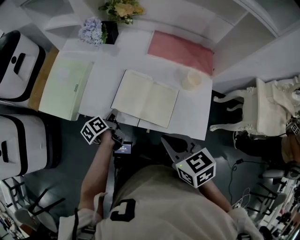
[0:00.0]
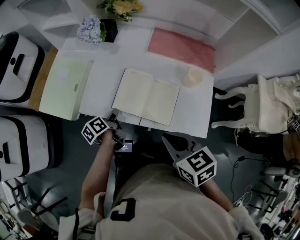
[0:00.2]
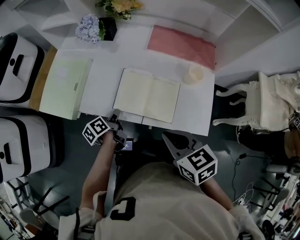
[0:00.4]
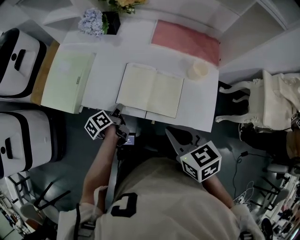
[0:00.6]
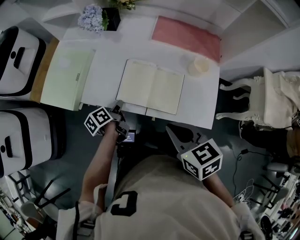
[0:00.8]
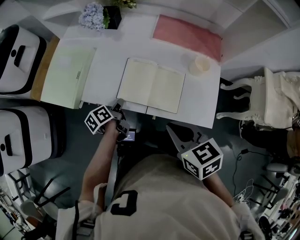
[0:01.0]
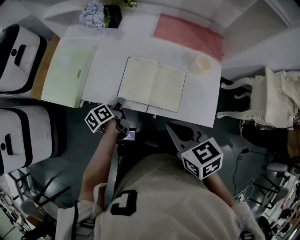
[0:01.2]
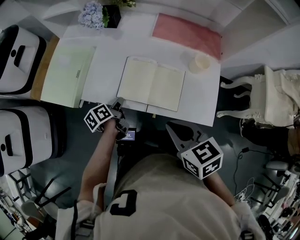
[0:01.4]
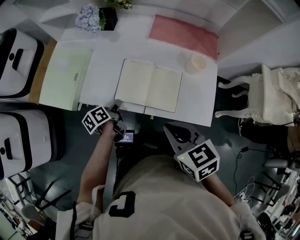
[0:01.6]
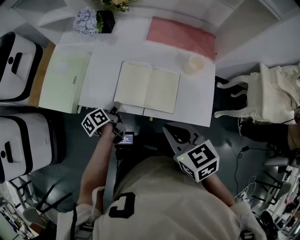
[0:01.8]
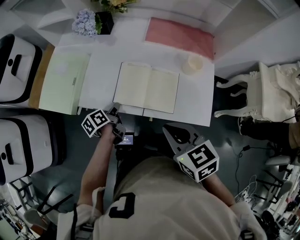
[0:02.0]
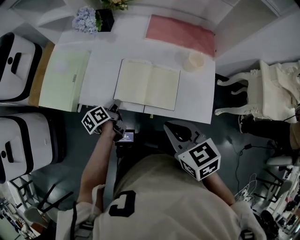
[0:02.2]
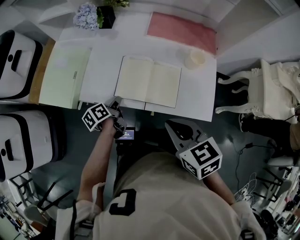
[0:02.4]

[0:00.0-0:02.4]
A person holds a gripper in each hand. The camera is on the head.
0:00.0 to 0:01.2: The grippers move only a little.
0:01.2 to 0:02.4: Both grippers stay put.

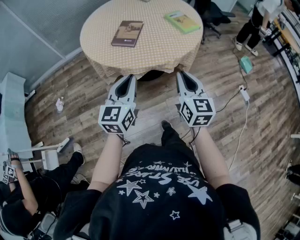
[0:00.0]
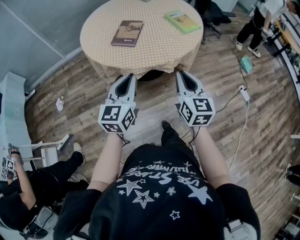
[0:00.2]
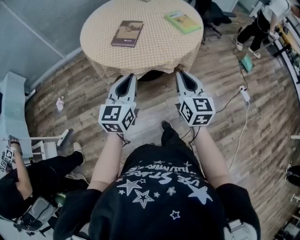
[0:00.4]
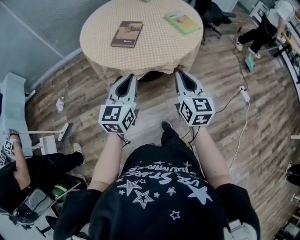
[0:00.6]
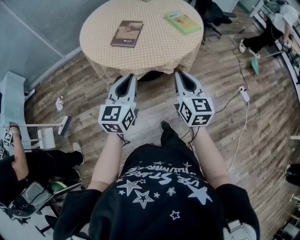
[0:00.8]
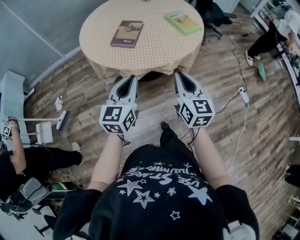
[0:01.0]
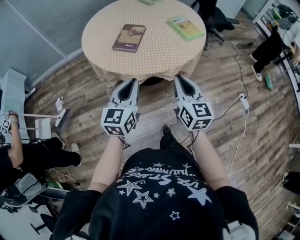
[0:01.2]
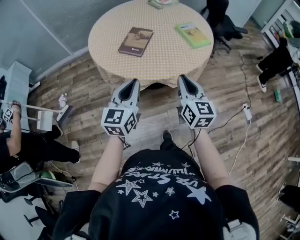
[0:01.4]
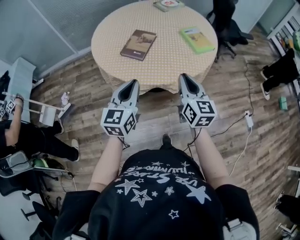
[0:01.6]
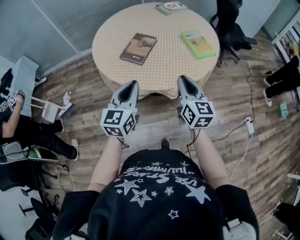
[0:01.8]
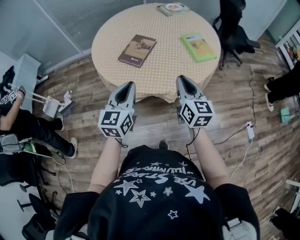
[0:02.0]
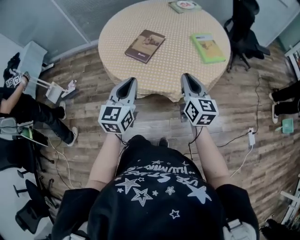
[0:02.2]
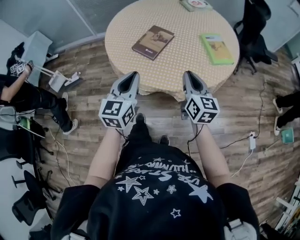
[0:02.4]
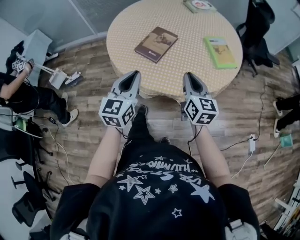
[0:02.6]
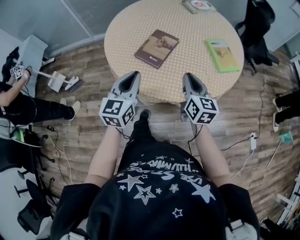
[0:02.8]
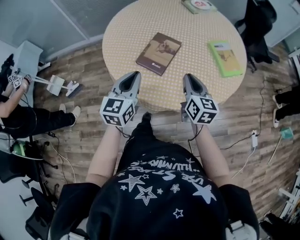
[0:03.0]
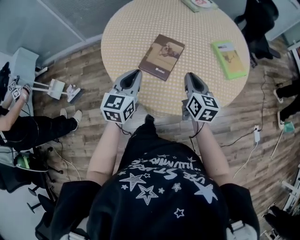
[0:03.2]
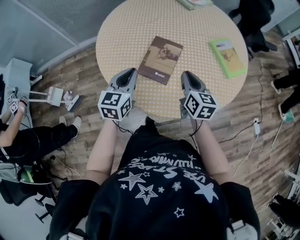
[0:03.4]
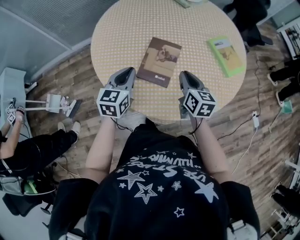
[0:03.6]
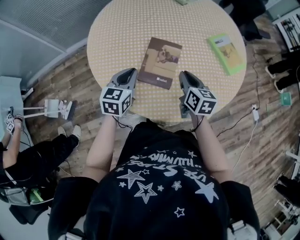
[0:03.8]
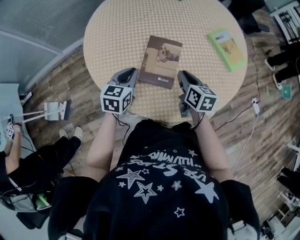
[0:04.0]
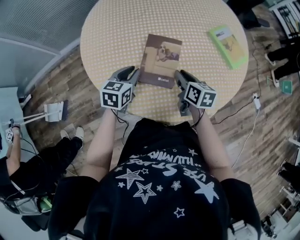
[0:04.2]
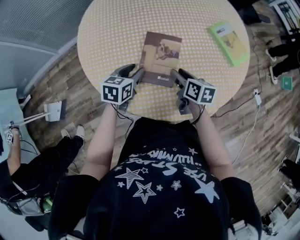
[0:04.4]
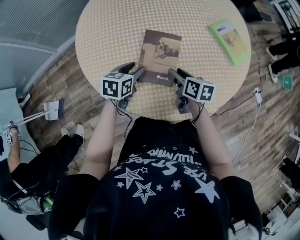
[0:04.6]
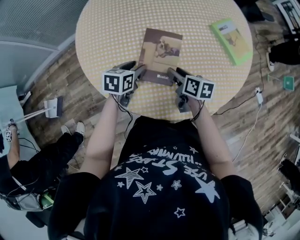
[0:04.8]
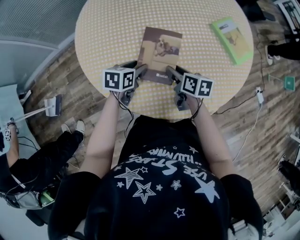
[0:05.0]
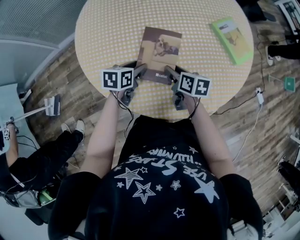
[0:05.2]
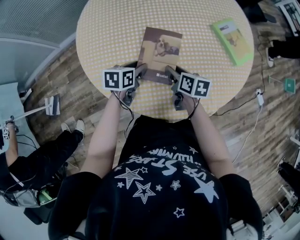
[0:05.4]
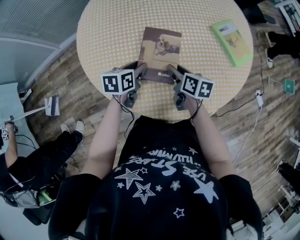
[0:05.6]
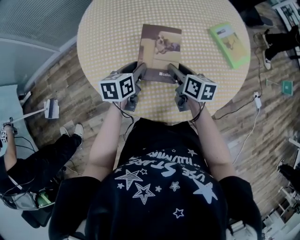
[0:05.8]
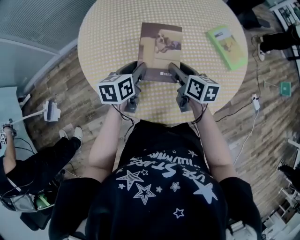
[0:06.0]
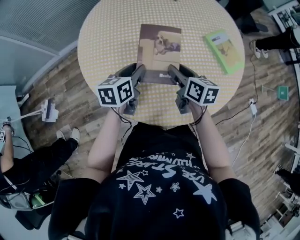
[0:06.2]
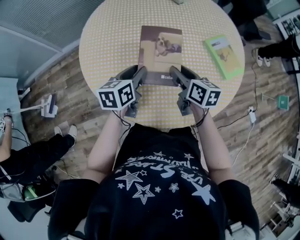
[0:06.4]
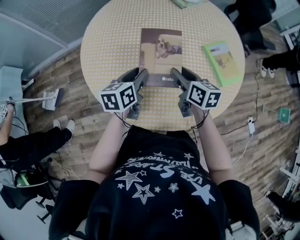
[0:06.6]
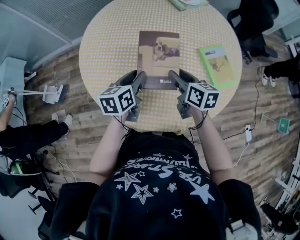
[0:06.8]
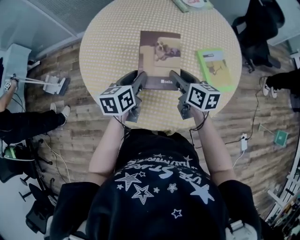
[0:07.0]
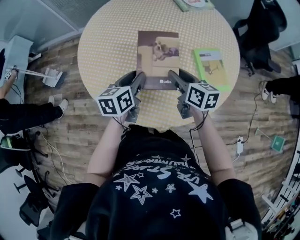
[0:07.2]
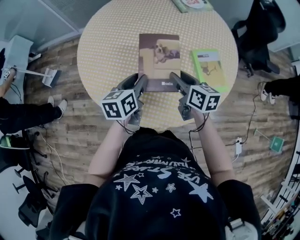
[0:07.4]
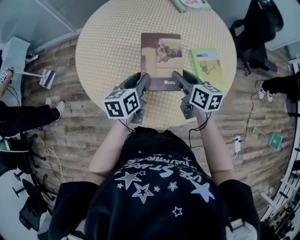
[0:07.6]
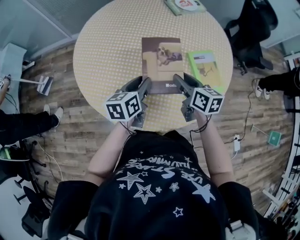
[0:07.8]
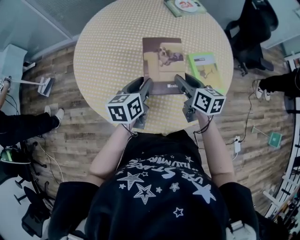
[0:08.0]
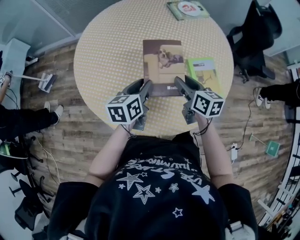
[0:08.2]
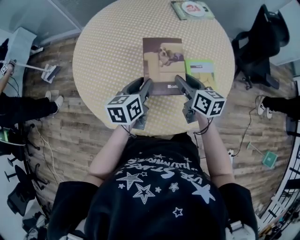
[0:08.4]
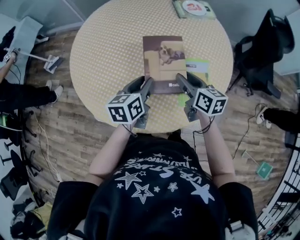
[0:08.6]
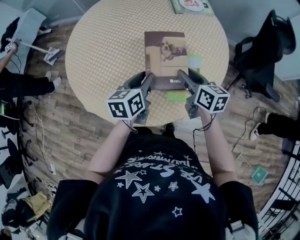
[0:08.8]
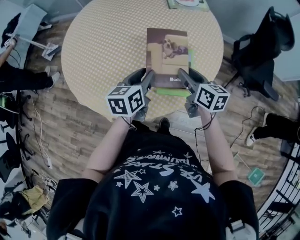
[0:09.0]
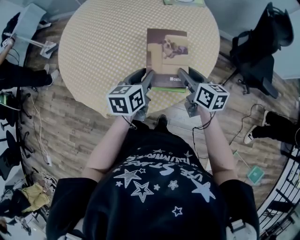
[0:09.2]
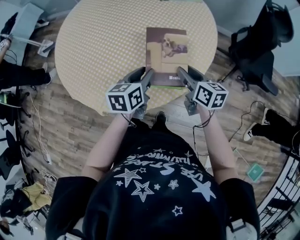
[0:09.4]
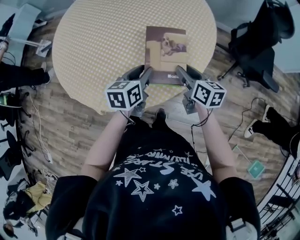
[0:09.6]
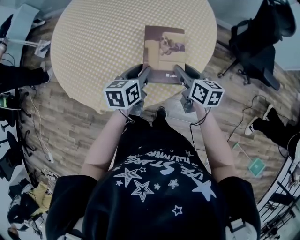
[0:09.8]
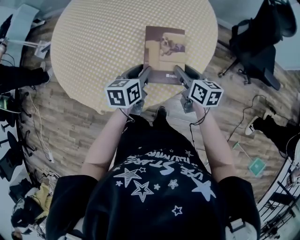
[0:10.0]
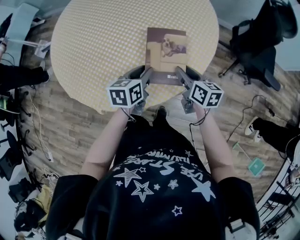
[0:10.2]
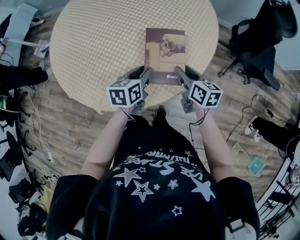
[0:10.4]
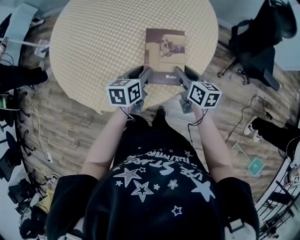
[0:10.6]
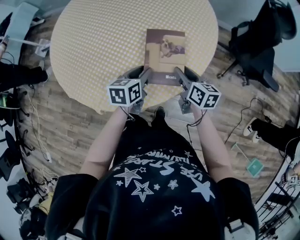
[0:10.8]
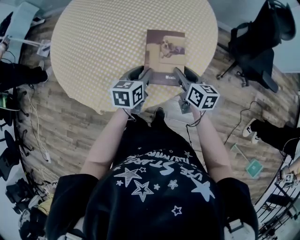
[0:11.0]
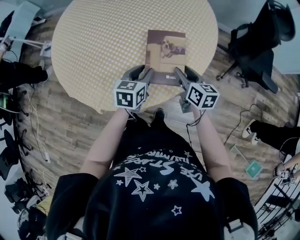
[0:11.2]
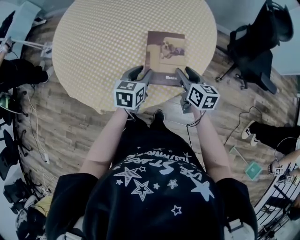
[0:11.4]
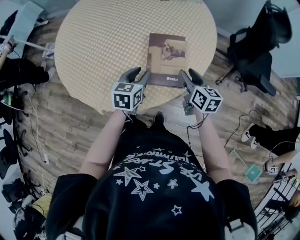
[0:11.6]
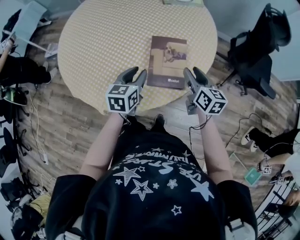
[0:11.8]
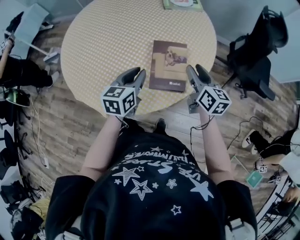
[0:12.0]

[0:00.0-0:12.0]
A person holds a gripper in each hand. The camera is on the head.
0:00.0 to 0:01.6: The right gripper moves forward, approximately 10 cm, while the left gripper goes about 5 cm forward.
0:01.6 to 0:03.0: The left gripper shifts about 20 cm forward; the right gripper moves forward and downward, approximately 20 cm.
0:03.0 to 0:04.4: The right gripper moves downward, forward and to the left, about 20 cm, turns by about 30 degrees, and opens up; the left gripper shifts about 25 cm forward and downward, turns by some 40 degrees, and opens up.
0:04.4 to 0:06.0: The left gripper changes place by some 5 cm, while the right gripper heads upward, covering roughly 5 cm.
0:06.0 to 0:07.6: The right gripper moves about 15 cm, and swivels about 20 degrees; the left gripper shifts by approximately 20 cm, and turns by approximately 30 degrees.
0:07.6 to 0:09.0: Both grippers travel together to the right, approximately 20 cm.
0:09.0 to 0:10.4: Both grippers travel together downward, about 10 cm.
0:10.4 to 0:12.0: The grippers both shift upward by about 10 cm.

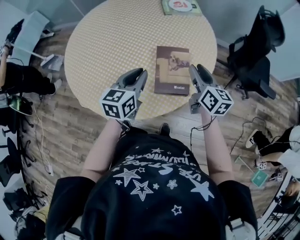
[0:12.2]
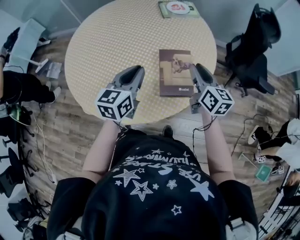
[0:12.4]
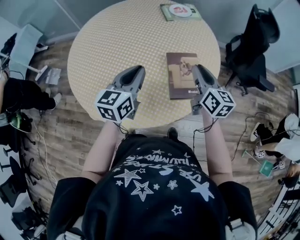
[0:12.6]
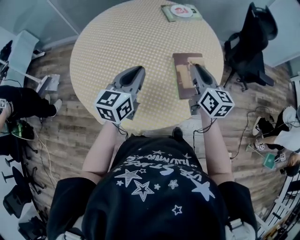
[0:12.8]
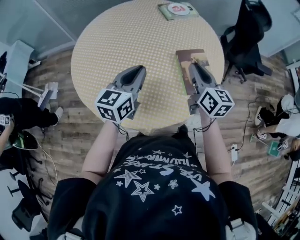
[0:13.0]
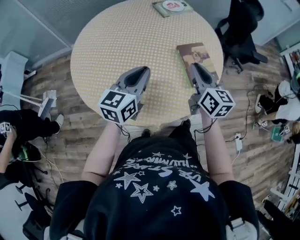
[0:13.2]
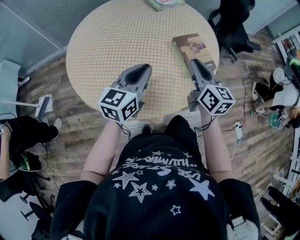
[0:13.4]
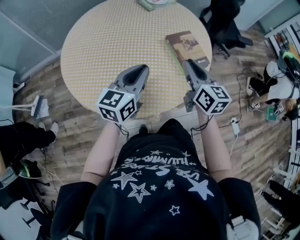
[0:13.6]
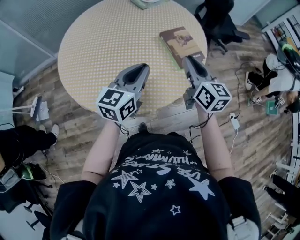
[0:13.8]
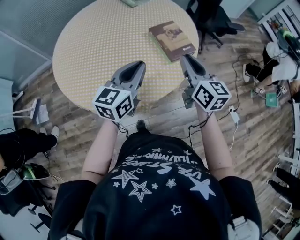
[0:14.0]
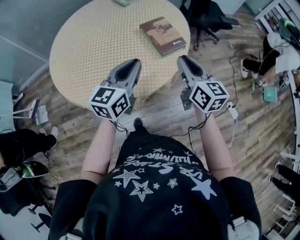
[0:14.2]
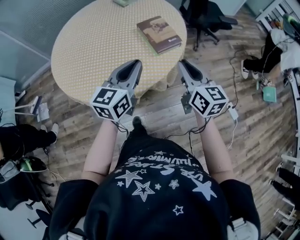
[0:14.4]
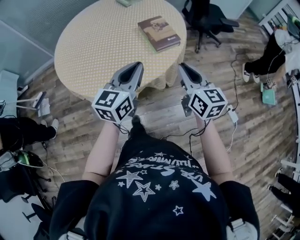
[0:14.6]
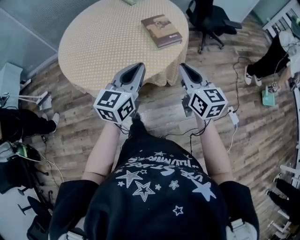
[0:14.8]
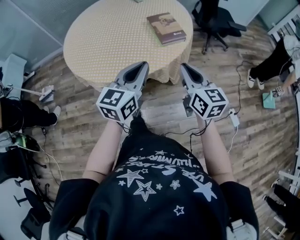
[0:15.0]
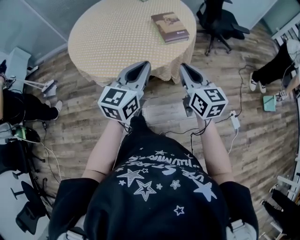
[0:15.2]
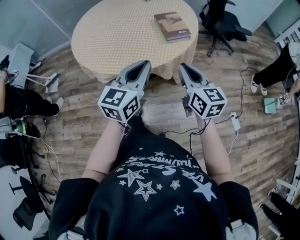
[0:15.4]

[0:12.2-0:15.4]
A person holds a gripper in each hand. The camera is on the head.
0:12.2 to 0:13.8: The left gripper moves some 20 cm, and rotates approximately 40 degrees. The right gripper moves roughly 25 cm, swivels roughly 30 degrees, and closes its fingers.
0:13.8 to 0:15.4: The two grippers go about 25 cm backward and to the right.

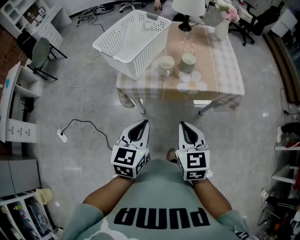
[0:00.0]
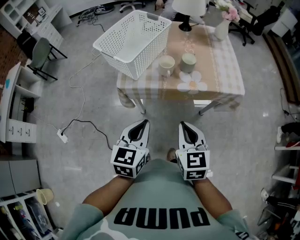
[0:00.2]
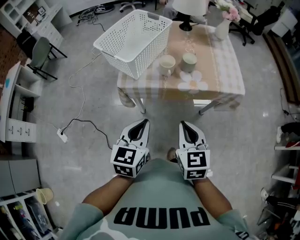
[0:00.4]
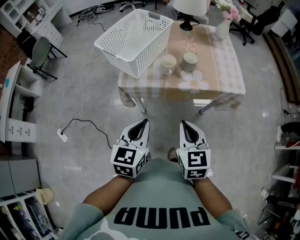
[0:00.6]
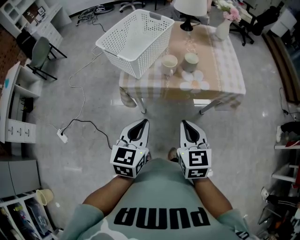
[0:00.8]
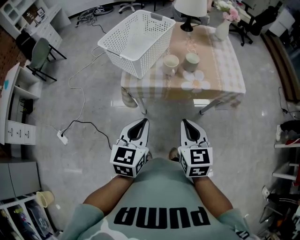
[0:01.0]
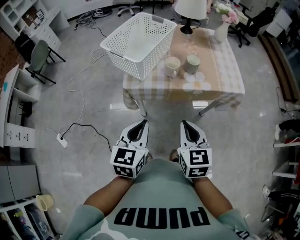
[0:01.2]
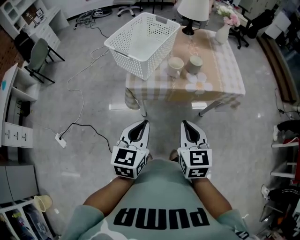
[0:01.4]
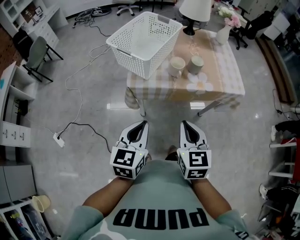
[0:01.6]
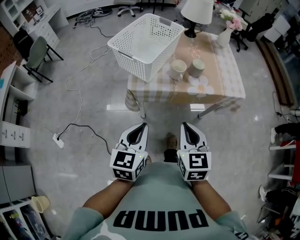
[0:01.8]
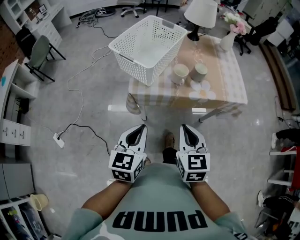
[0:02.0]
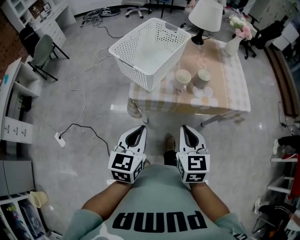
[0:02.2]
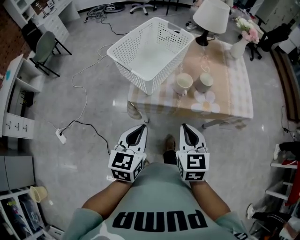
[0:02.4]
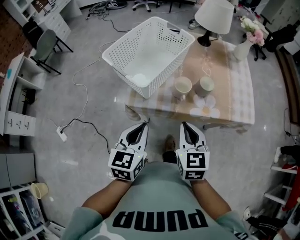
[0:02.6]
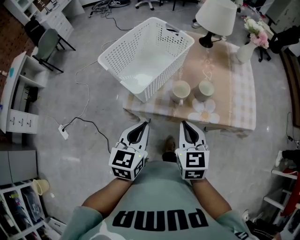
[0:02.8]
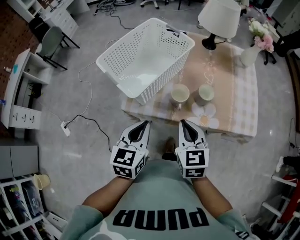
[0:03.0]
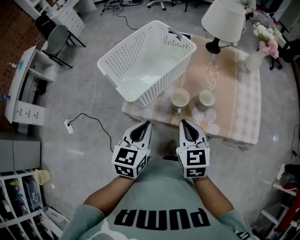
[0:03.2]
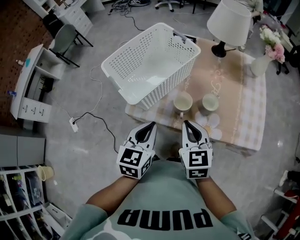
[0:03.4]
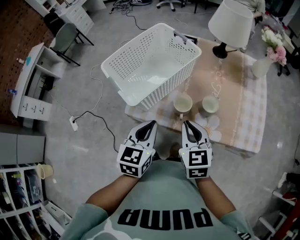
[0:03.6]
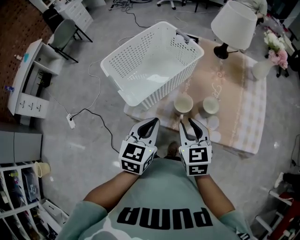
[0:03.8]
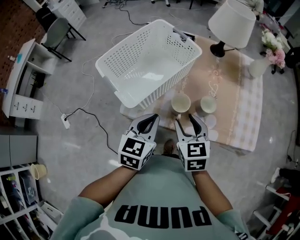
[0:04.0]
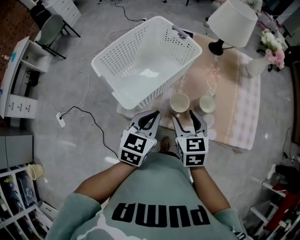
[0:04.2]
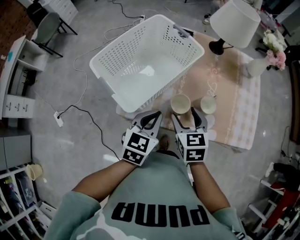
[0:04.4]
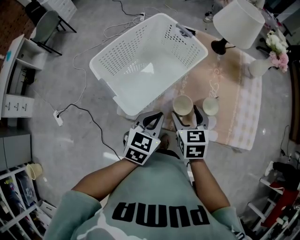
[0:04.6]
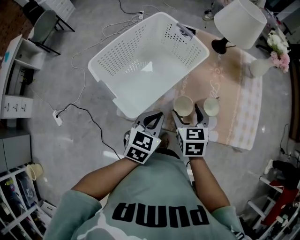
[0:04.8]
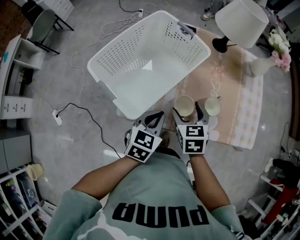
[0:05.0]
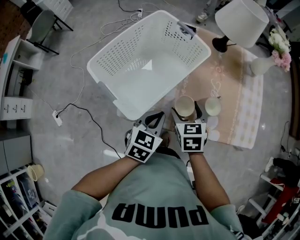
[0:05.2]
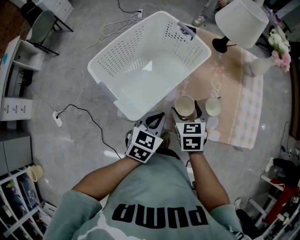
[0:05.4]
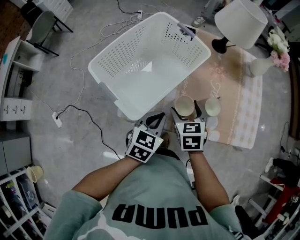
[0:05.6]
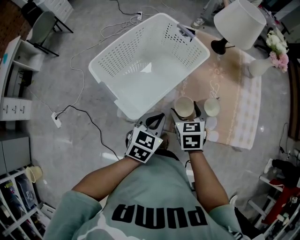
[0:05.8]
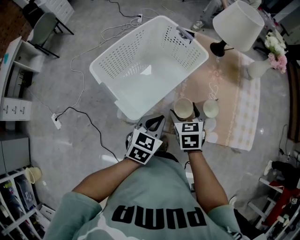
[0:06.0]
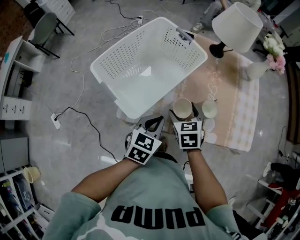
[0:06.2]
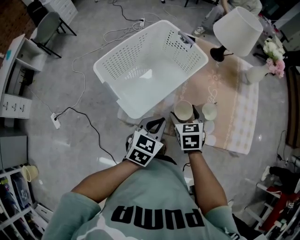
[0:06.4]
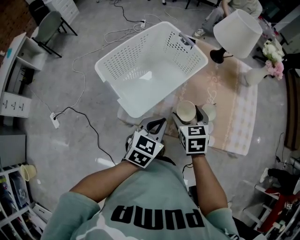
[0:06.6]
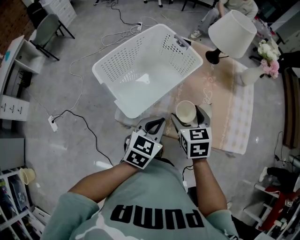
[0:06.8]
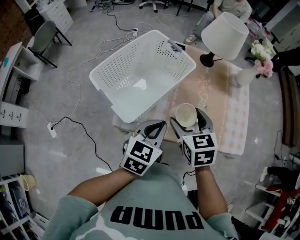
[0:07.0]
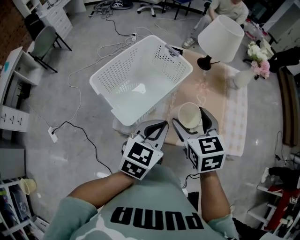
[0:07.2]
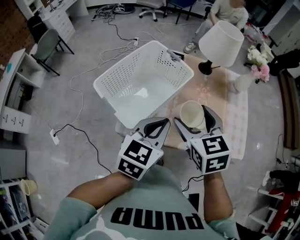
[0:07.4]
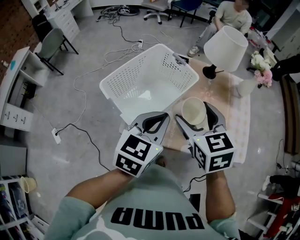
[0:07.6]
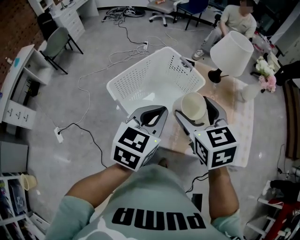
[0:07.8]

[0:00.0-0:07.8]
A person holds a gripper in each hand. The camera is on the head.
0:00.0 to 0:01.6: Both grippers move to the left, roughly 10 cm.
0:01.6 to 0:03.2: The grippers both shift forward by roughly 20 cm.
0:03.2 to 0:04.6: Both grippers move forward and downward, some 10 cm. The right gripper opens its fingers.
0:04.6 to 0:06.2: The grippers make only small movements.
0:06.2 to 0:07.8: The grippers both shift upward by roughly 20 cm.
